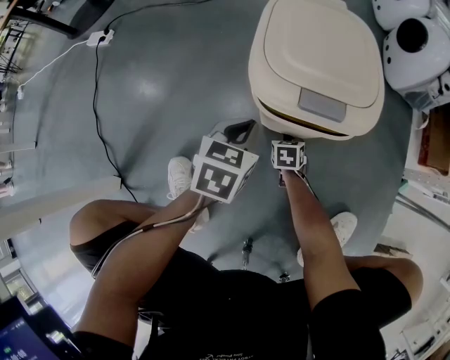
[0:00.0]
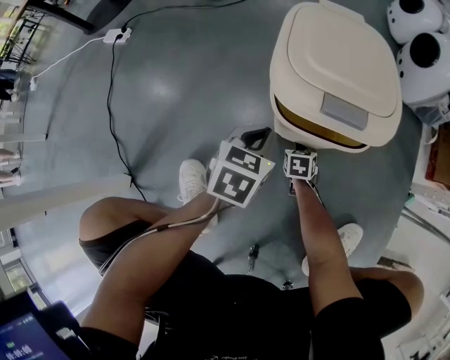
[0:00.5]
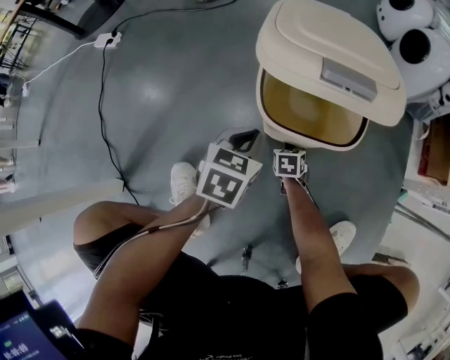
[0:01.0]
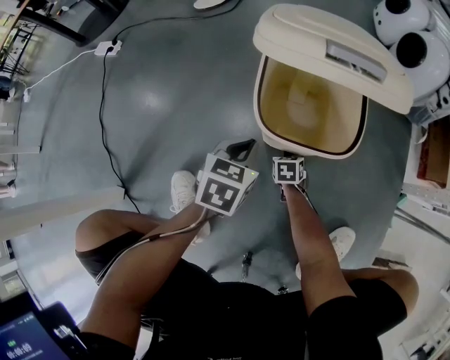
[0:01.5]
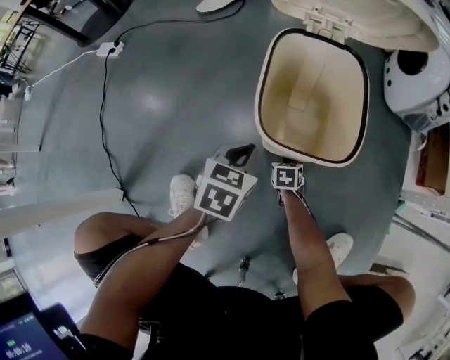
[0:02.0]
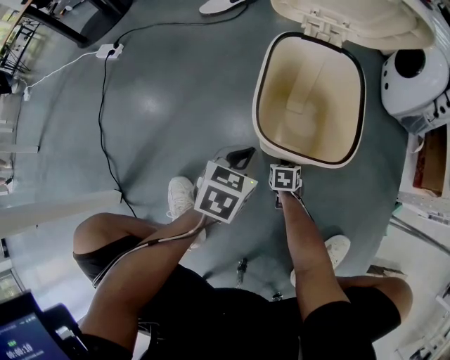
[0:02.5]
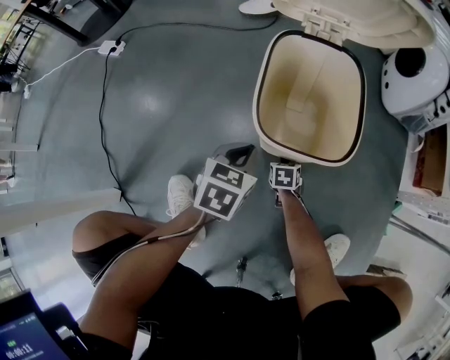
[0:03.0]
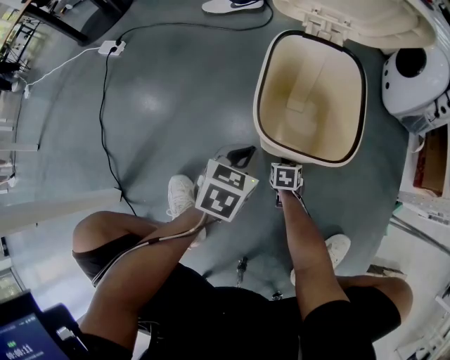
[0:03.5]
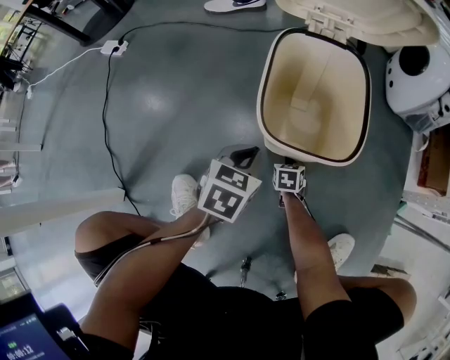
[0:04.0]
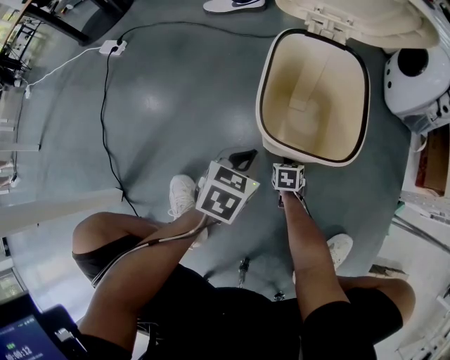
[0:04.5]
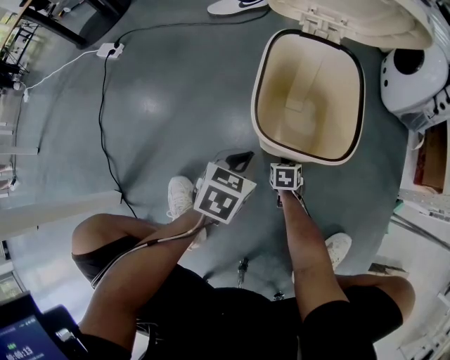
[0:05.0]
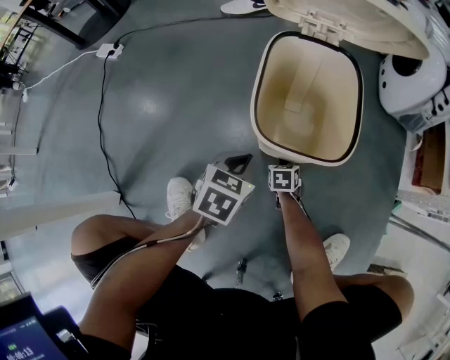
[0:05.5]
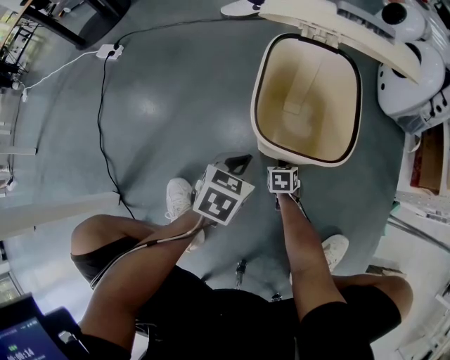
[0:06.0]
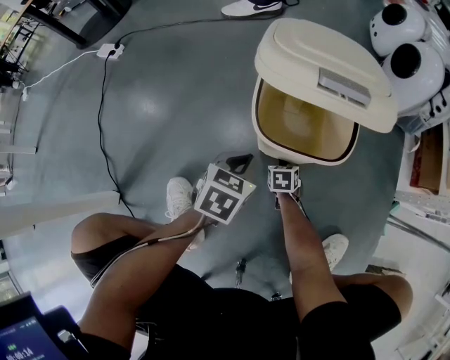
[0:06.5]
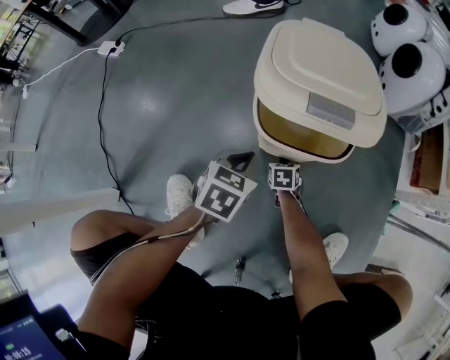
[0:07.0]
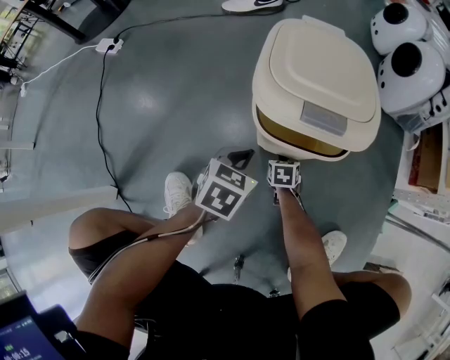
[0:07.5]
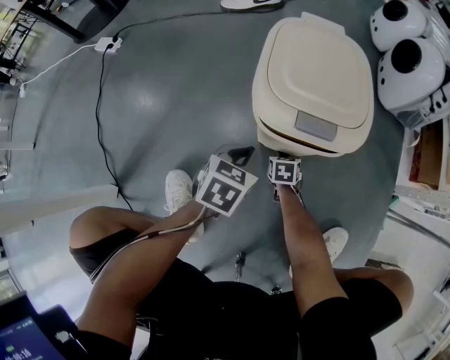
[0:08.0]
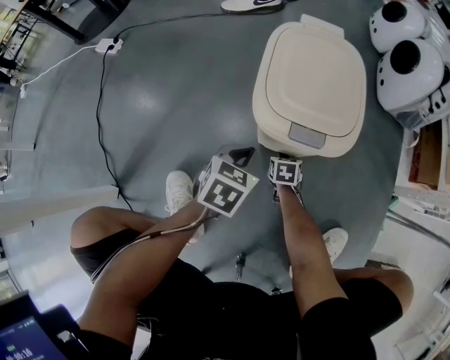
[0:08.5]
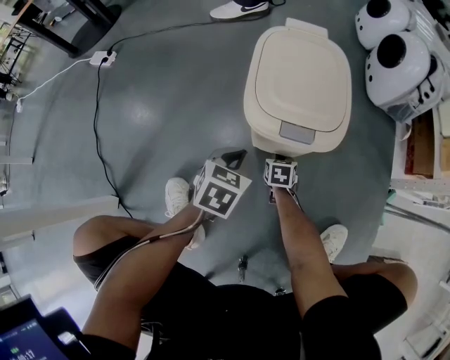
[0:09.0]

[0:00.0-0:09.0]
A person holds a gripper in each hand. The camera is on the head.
0:00.0 to 0:02.0: Neither gripper changes place.
0:02.0 to 0:04.5: Both grippers stay about where they are.
0:04.5 to 0:09.0: The grippers make only small movements.

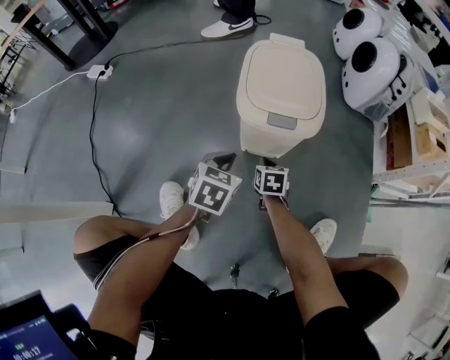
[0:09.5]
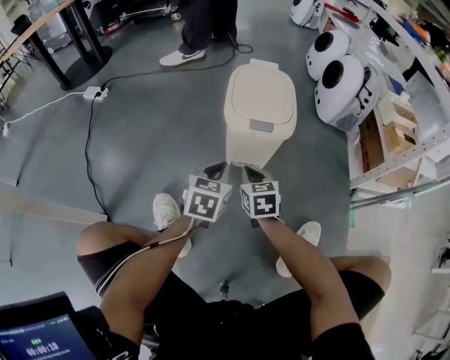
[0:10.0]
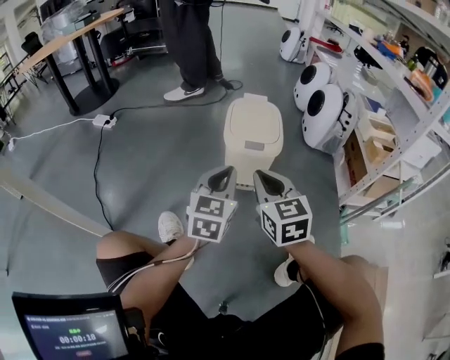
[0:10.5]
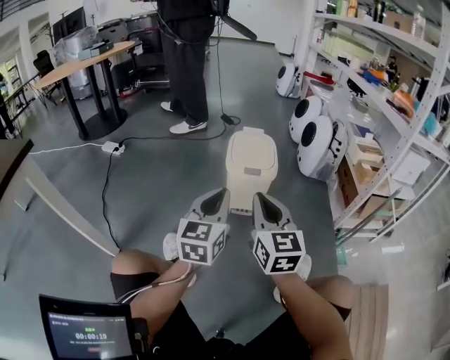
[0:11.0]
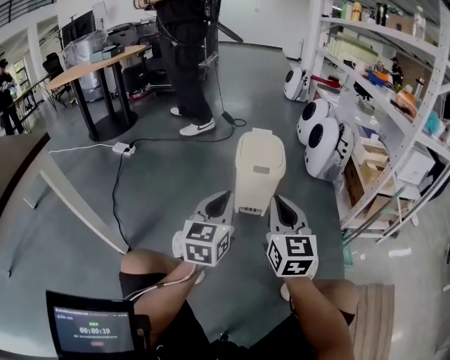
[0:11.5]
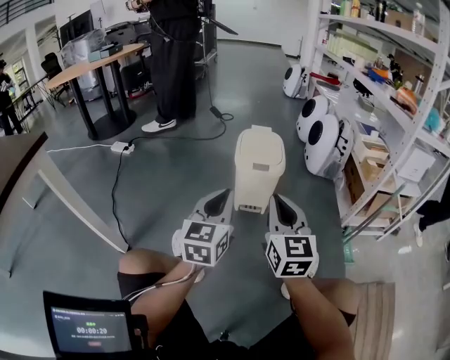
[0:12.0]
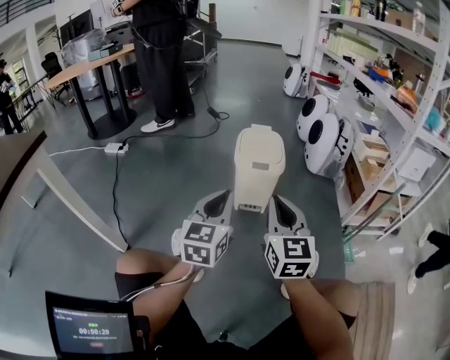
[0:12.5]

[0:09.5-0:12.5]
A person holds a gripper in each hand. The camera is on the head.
0:09.5 to 0:11.0: The left gripper shifts roughly 35 cm upward and backward, and angles its fingers upward, by some 40 degrees. Meanwhile the right gripper is displaced upward and backward by about 50 cm, and points its fingers about 50 degrees further upward.
0:11.0 to 0:12.5: There are only small adjustments of the grippers.

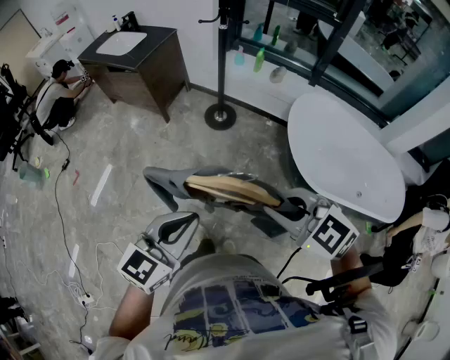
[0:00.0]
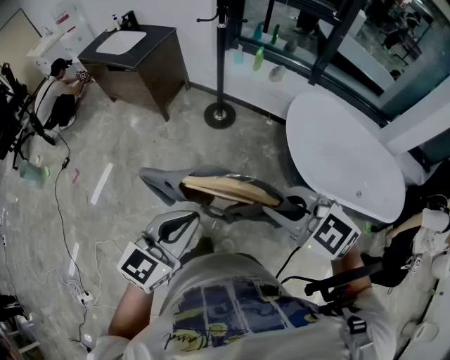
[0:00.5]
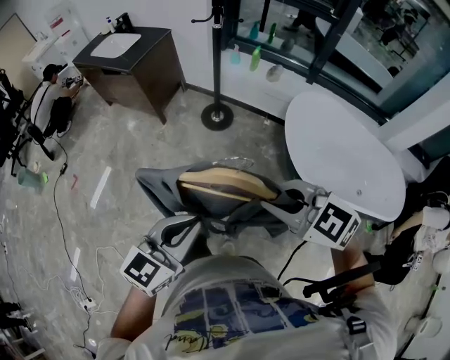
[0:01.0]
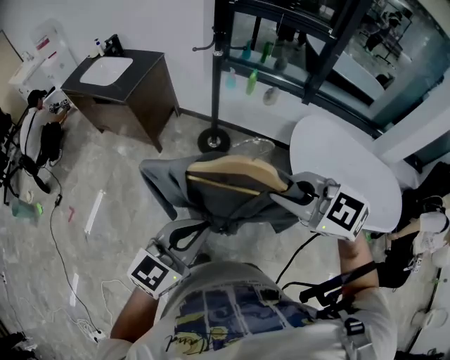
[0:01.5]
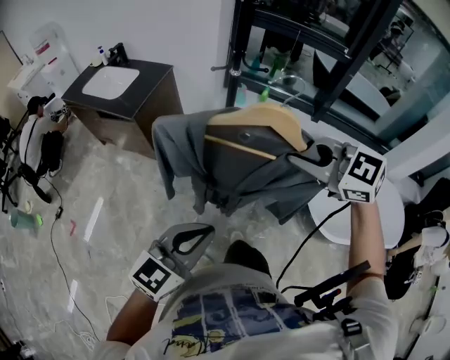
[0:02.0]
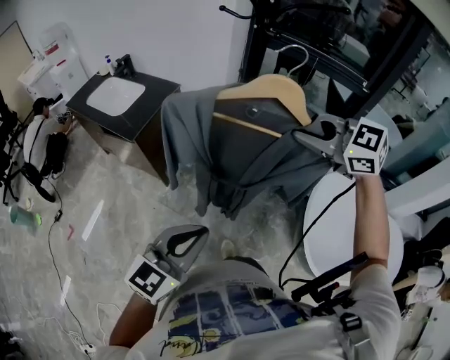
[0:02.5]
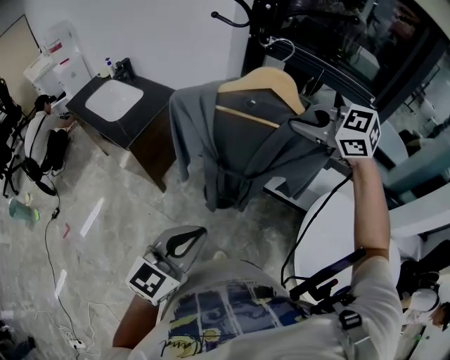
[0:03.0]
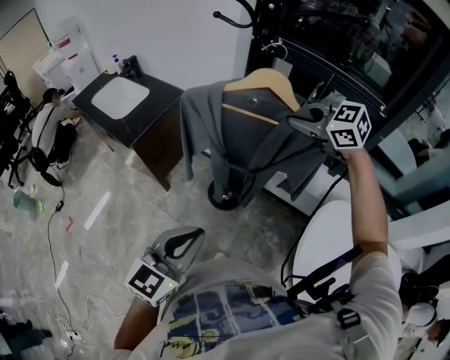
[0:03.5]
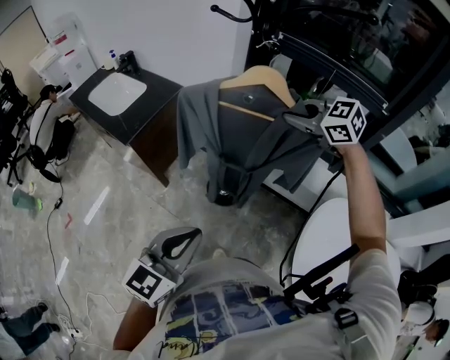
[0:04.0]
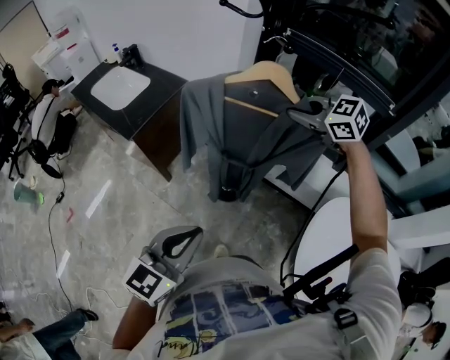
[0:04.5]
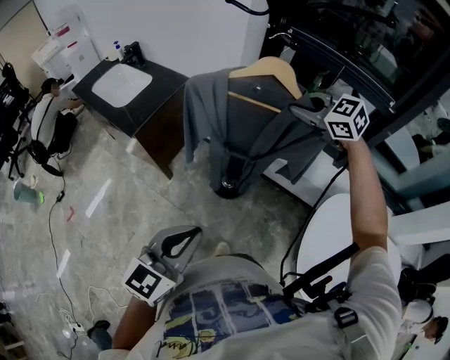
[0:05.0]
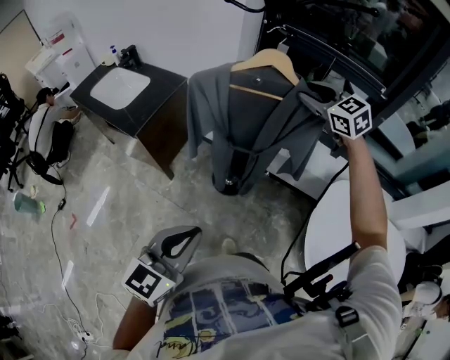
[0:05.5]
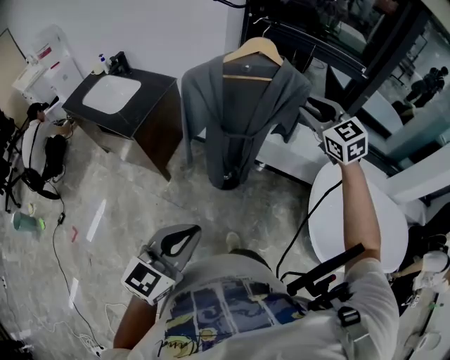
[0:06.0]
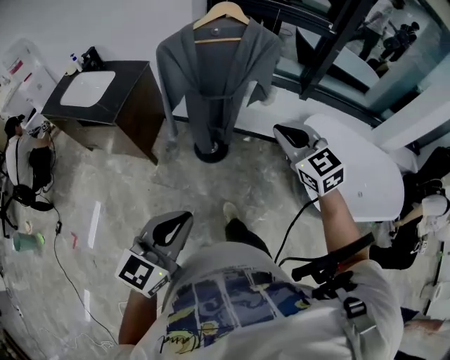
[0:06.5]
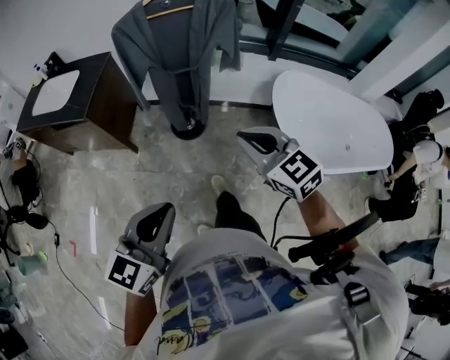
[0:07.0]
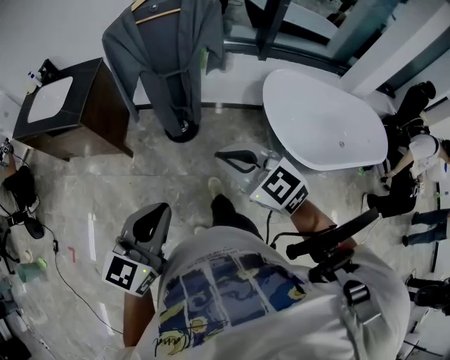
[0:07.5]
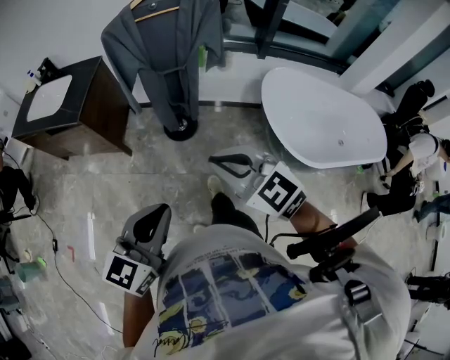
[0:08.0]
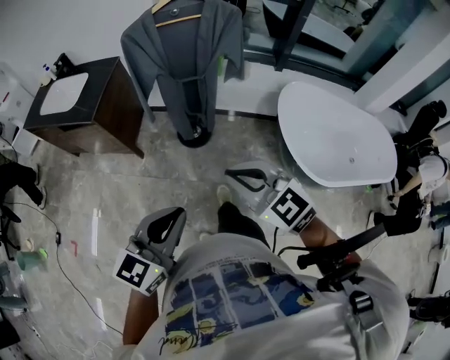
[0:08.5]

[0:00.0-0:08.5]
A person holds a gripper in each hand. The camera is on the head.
0:00.0 to 0:02.0: The grippers both shift forward by some 30 cm.
0:02.0 to 0:04.0: The right gripper heads forward, covering approximately 40 cm, while the left gripper heads forward and to the right, covering roughly 25 cm.
0:04.0 to 0:06.5: The left gripper shifts by roughly 20 cm, while the right gripper shifts by about 35 cm, turns by about 40 degrees, and opens, then closes once more.
0:06.5 to 0:08.5: The left gripper moves about 5 cm, while the right gripper goes some 20 cm backward.

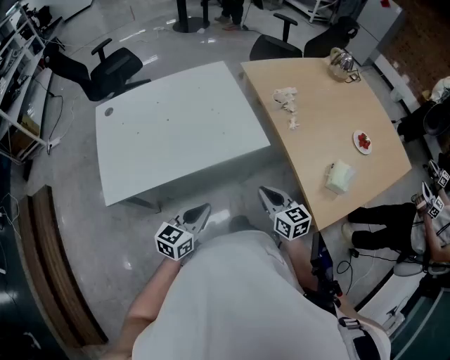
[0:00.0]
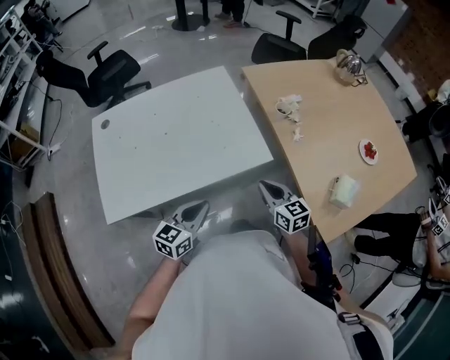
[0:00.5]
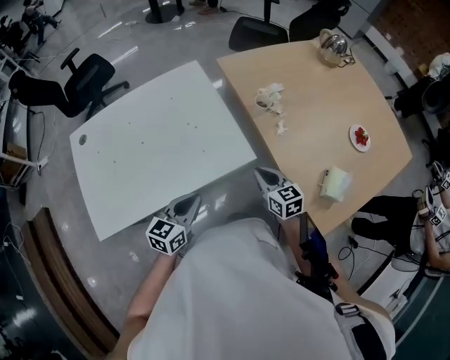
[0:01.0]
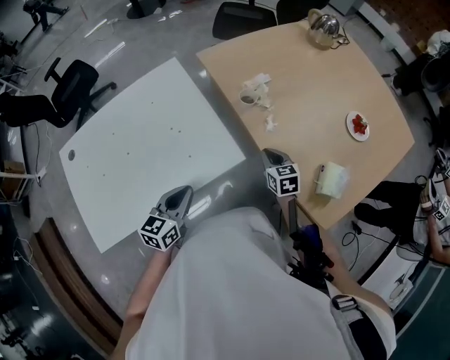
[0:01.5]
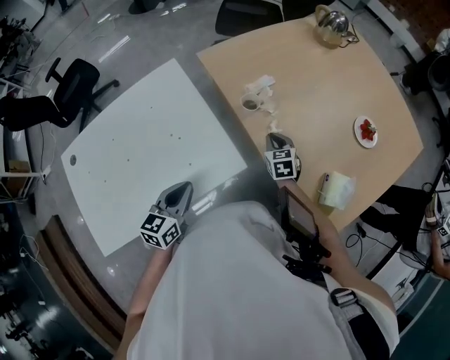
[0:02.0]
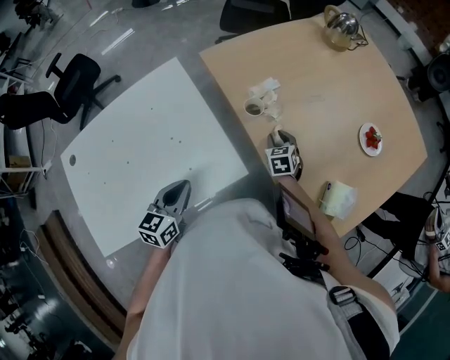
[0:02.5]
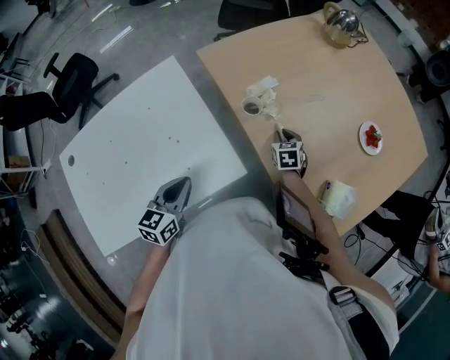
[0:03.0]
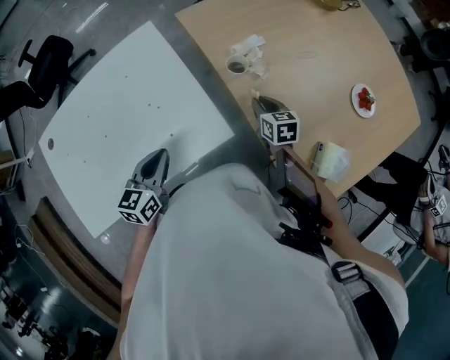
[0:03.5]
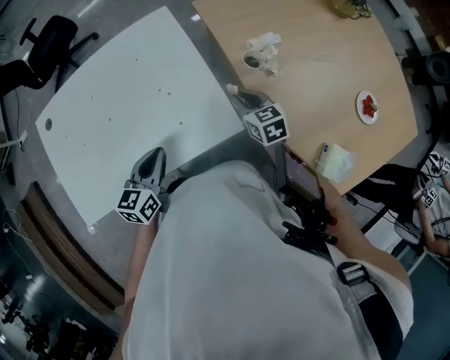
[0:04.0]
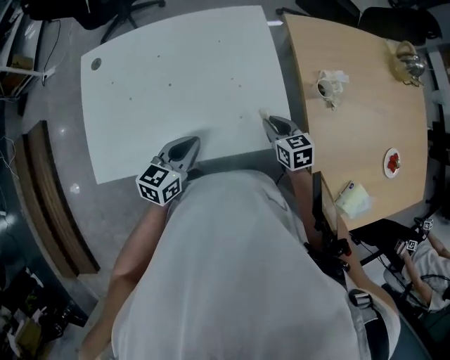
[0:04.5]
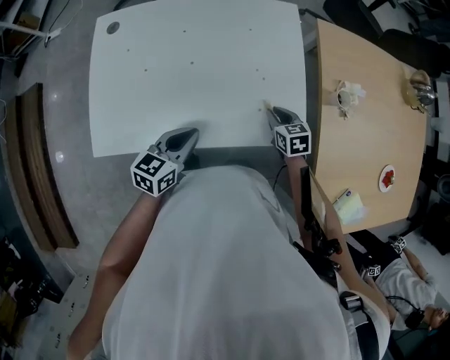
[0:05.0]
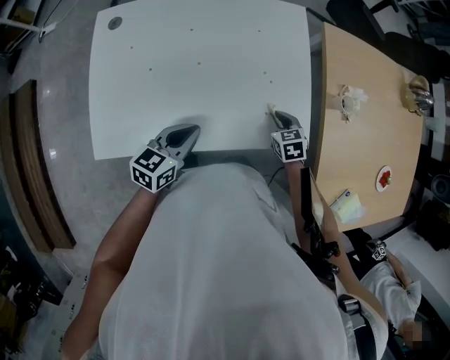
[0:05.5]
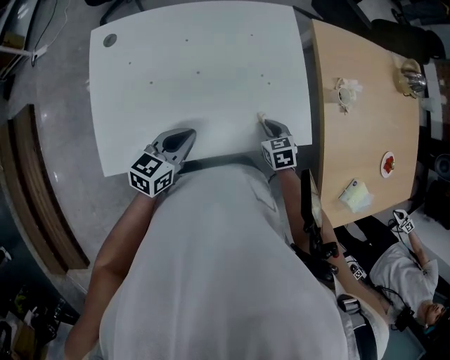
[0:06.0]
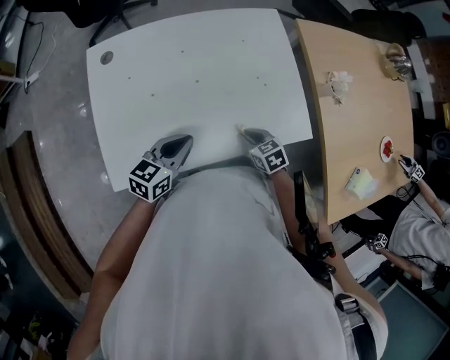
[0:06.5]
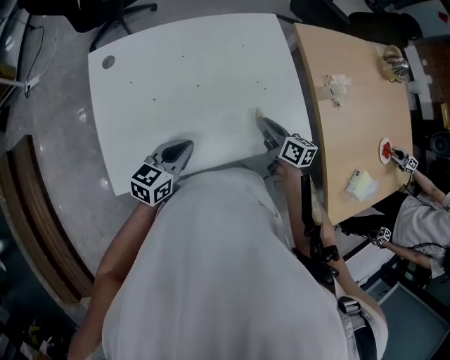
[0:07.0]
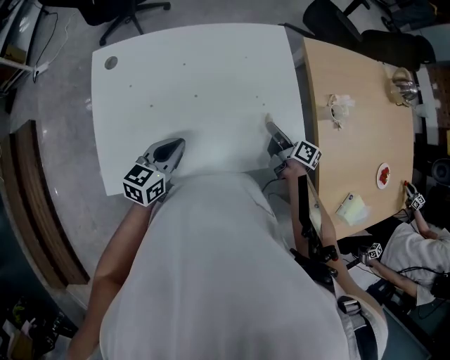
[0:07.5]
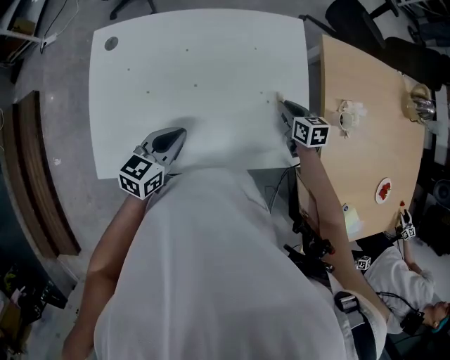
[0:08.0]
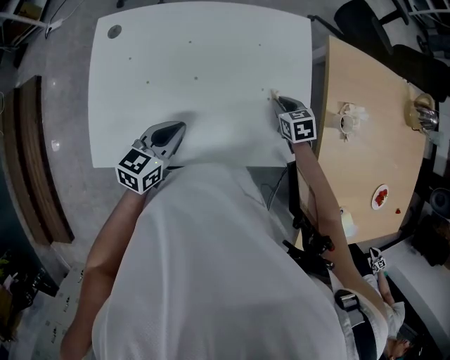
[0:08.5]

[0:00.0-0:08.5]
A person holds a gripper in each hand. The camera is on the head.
0:00.0 to 0:02.0: The two grippers go roughly 30 cm forward. The right gripper turns by approximately 30 degrees.
0:02.0 to 0:04.0: The left gripper travels to the left by approximately 5 cm. Meanwhile the right gripper shifts about 10 cm to the left, and turns by approximately 20 degrees.
0:04.0 to 0:06.5: The left gripper moves to the left, some 20 cm. Meanwhile the right gripper moves to the left and backward, some 30 cm, and changes its angle by some 20 degrees.
0:06.5 to 0:08.5: The right gripper goes some 20 cm forward and to the right; the left gripper changes place by about 5 cm.
